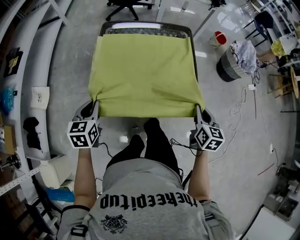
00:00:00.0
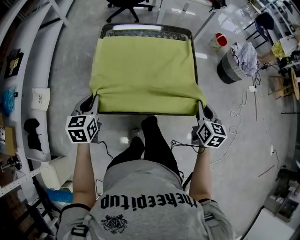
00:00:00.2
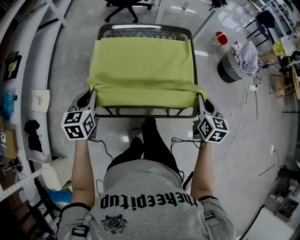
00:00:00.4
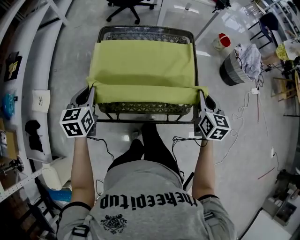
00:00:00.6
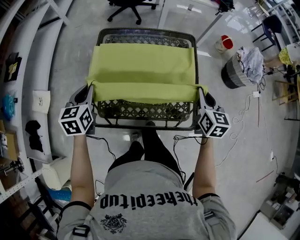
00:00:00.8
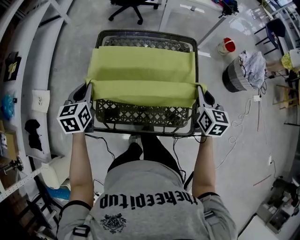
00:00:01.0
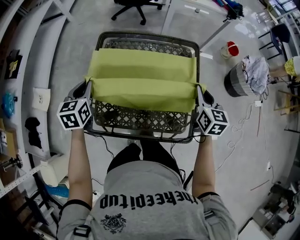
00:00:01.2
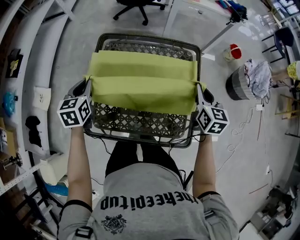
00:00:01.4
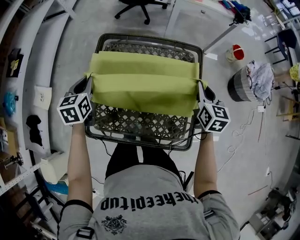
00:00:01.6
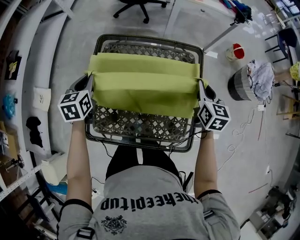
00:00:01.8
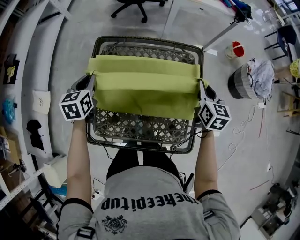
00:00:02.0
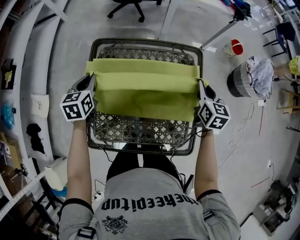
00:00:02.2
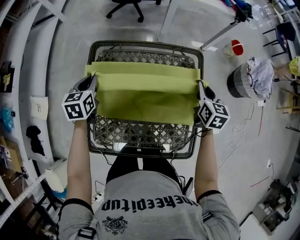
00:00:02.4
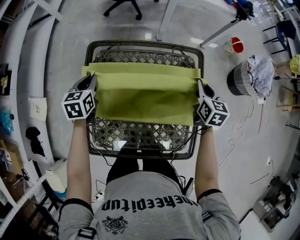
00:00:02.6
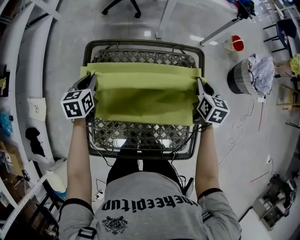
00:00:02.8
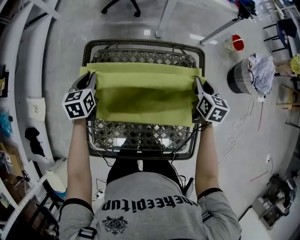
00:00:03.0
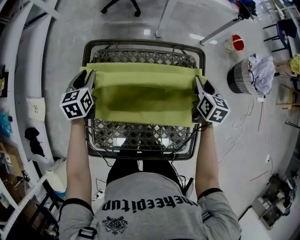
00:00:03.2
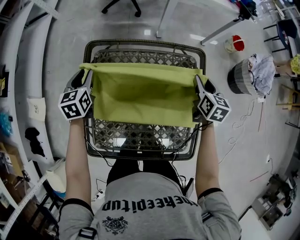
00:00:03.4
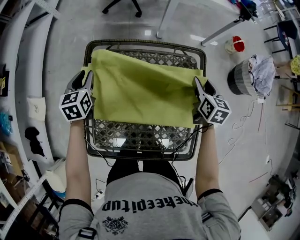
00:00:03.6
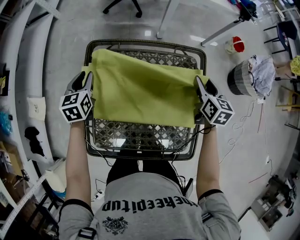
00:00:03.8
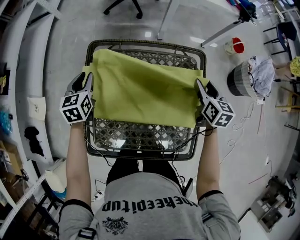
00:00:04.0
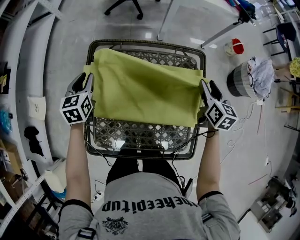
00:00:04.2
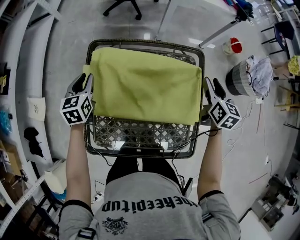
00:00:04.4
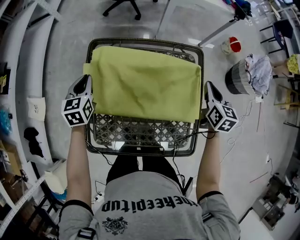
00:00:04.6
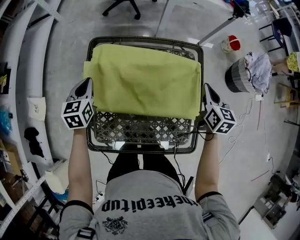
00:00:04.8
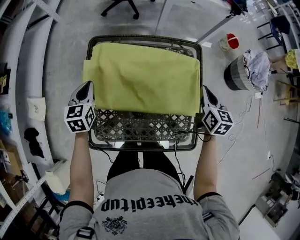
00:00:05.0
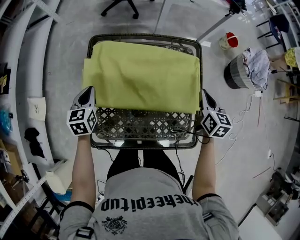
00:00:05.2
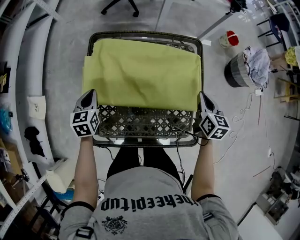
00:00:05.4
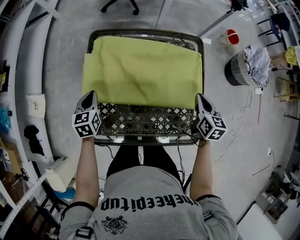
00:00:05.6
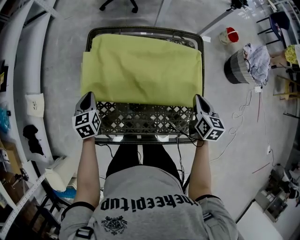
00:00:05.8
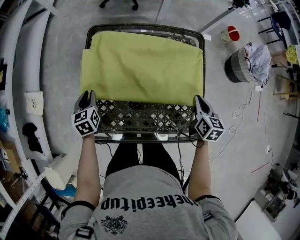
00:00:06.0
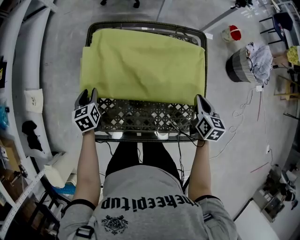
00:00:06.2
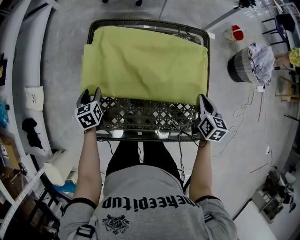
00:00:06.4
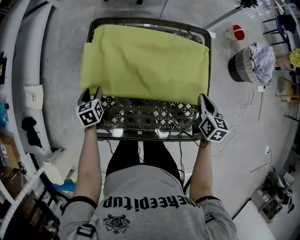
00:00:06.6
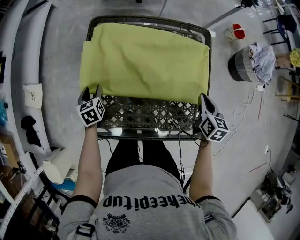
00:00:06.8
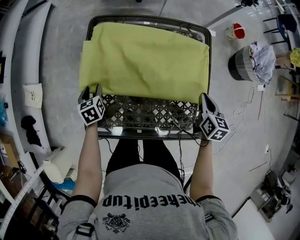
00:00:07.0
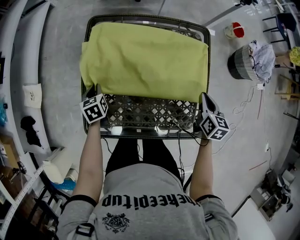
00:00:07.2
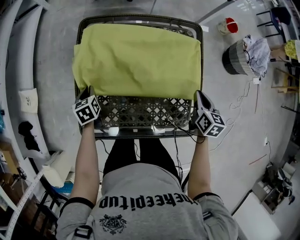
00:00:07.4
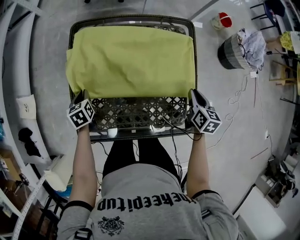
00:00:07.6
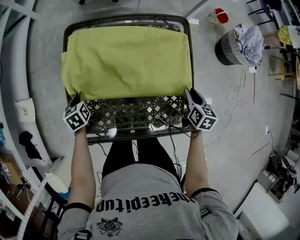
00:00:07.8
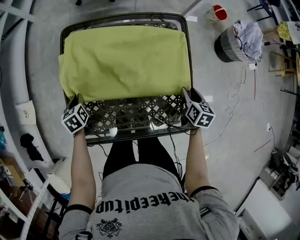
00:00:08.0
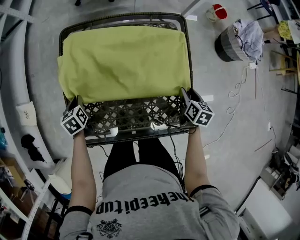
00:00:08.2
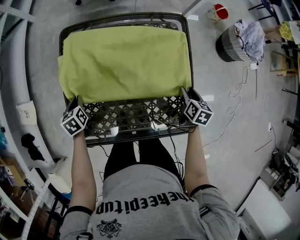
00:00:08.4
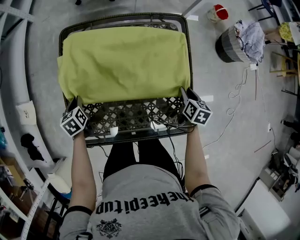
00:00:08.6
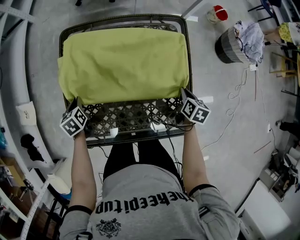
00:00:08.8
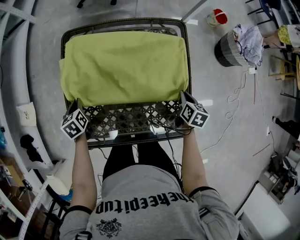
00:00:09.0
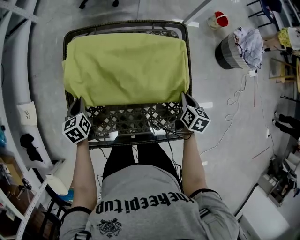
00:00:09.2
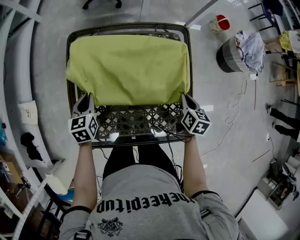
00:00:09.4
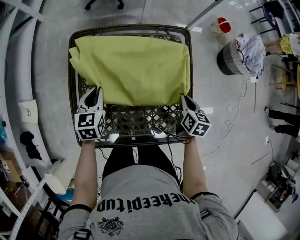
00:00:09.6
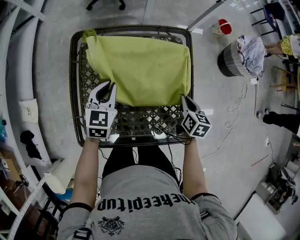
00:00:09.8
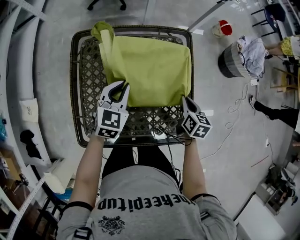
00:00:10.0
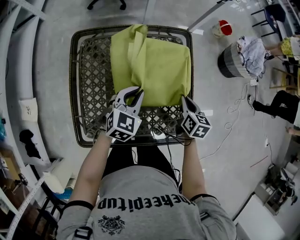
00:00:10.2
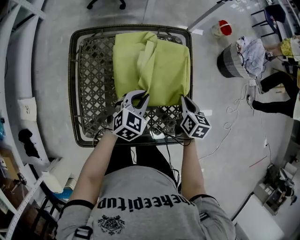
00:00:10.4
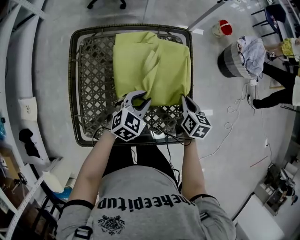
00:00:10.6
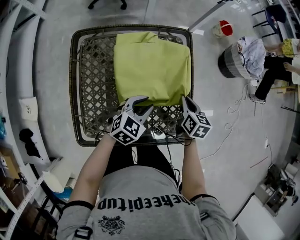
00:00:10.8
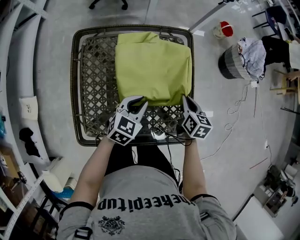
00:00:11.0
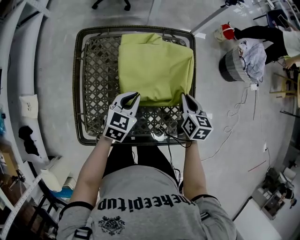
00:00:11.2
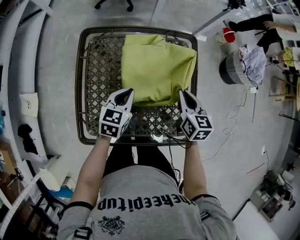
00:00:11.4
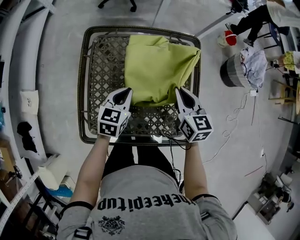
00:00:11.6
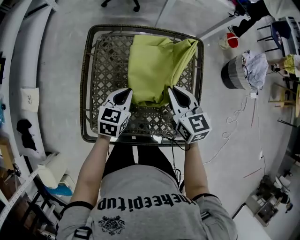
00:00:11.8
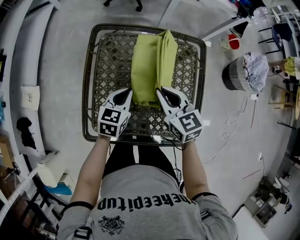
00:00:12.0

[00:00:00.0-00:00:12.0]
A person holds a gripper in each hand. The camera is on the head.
00:00:00.0 to 00:00:01.6: The grippers both shift forward by some 30 cm.
00:00:01.6 to 00:00:03.0: The two grippers go roughly 15 cm forward and downward.
00:00:03.0 to 00:00:04.4: The right gripper shifts about 5 cm upward, and opens.
00:00:04.4 to 00:00:06.0: Both grippers travel together backward and downward, roughly 15 cm. The right gripper closes.
00:00:06.0 to 00:00:07.6: The left gripper goes roughly 5 cm downward, and opens, then closes again.
00:00:07.6 to 00:00:09.0: The right gripper travels downward by roughly 5 cm, and opens, then closes once more.
00:00:09.0 to 00:00:10.4: The right gripper shifts roughly 5 cm upward. The left gripper is displaced to the right by roughly 30 cm, and swivels some 60 degrees.
00:00:10.4 to 00:00:12.0: The right gripper shifts by about 25 cm, and changes its angle by some 40 degrees, while the left gripper shifts by about 15 cm, and swivels about 30 degrees.

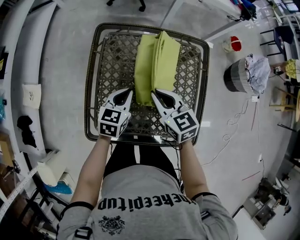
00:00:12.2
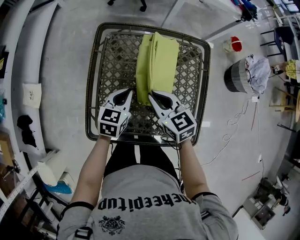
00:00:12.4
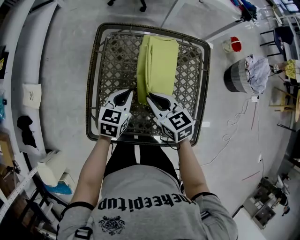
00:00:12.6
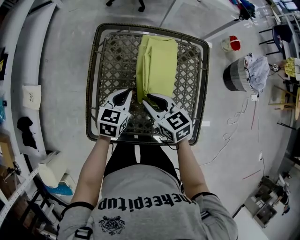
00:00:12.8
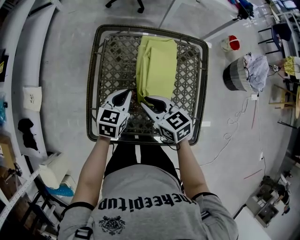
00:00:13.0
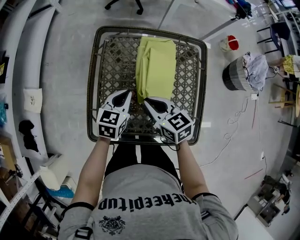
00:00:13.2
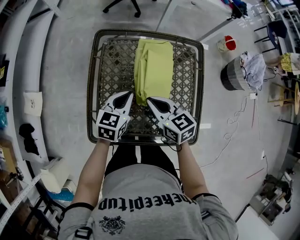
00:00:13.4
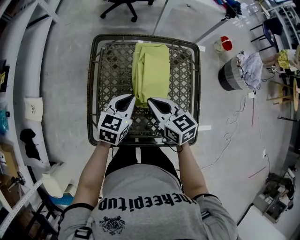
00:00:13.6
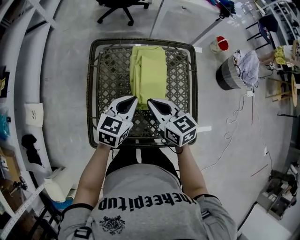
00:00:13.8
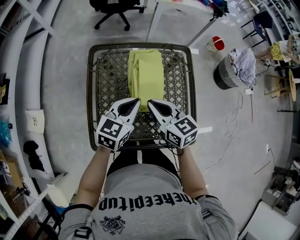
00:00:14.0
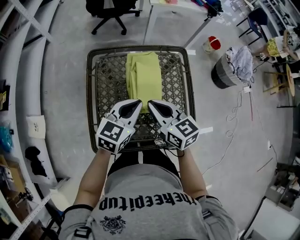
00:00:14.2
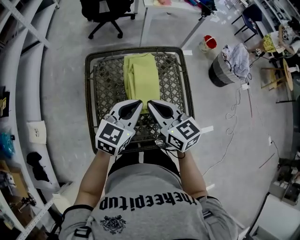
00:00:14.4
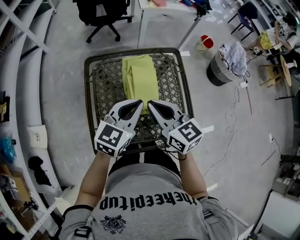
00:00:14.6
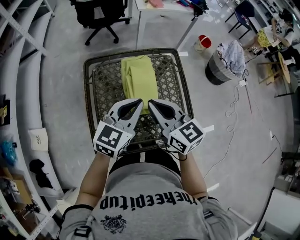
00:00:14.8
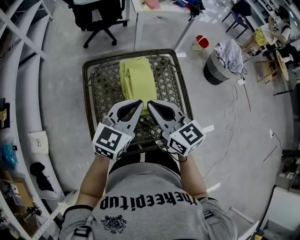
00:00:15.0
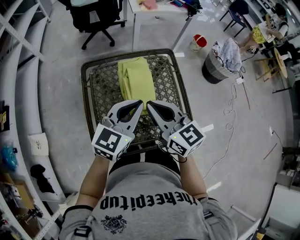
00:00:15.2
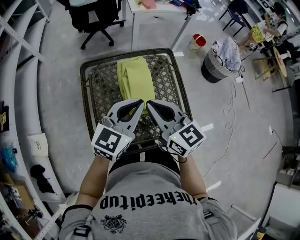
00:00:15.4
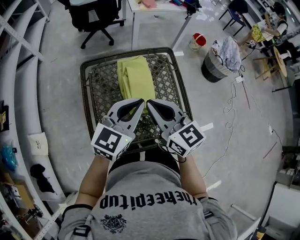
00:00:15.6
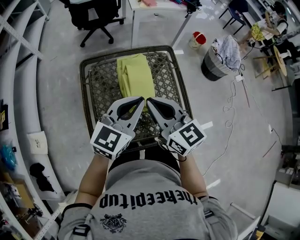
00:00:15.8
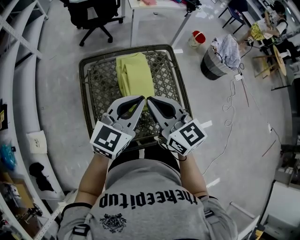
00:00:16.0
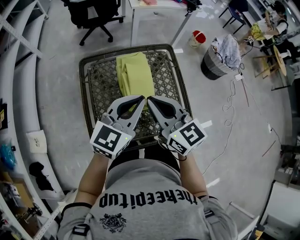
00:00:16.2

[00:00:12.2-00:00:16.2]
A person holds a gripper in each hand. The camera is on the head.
00:00:12.2 to 00:00:13.6: The left gripper goes roughly 5 cm upward.
00:00:13.6 to 00:00:14.8: The grippers both shift upward by about 15 cm. The right gripper swivels roughly 20 degrees; the left gripper rotates about 20 degrees.
00:00:14.8 to 00:00:16.2: The grippers move only a little.

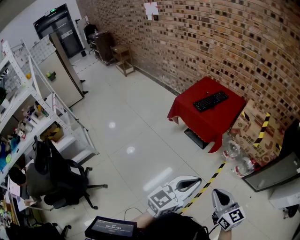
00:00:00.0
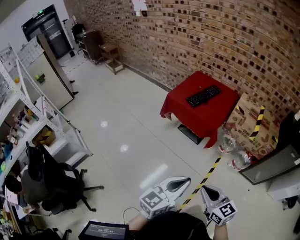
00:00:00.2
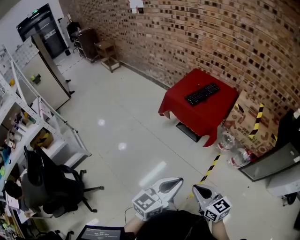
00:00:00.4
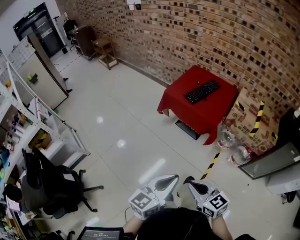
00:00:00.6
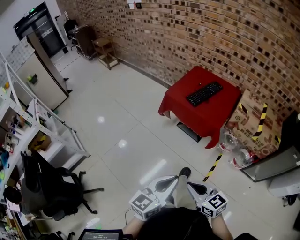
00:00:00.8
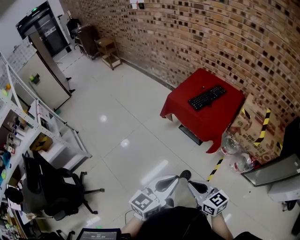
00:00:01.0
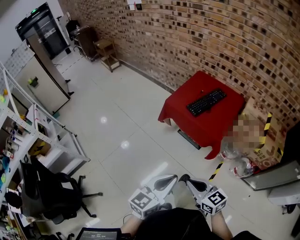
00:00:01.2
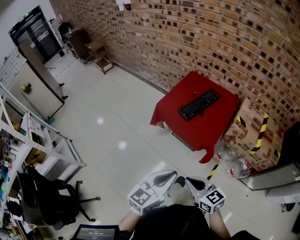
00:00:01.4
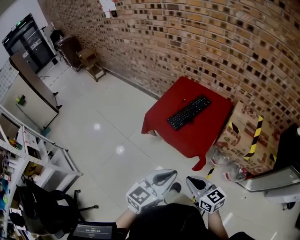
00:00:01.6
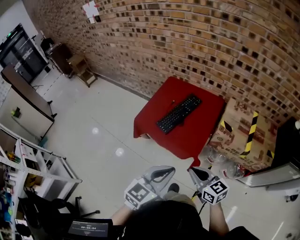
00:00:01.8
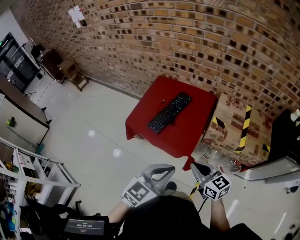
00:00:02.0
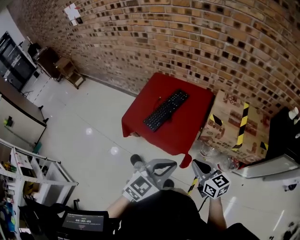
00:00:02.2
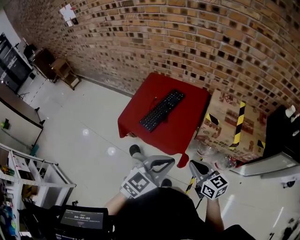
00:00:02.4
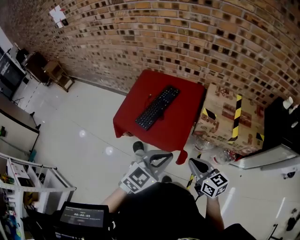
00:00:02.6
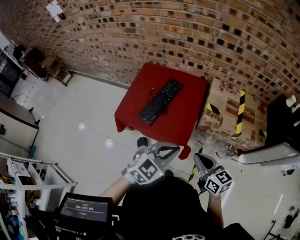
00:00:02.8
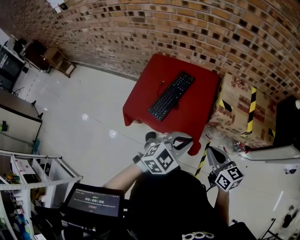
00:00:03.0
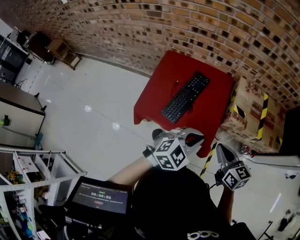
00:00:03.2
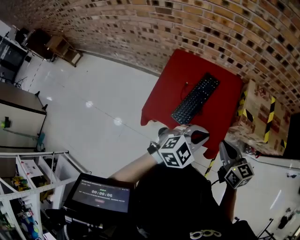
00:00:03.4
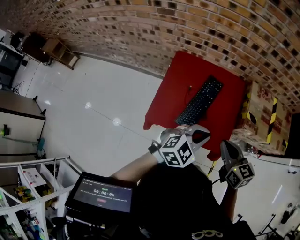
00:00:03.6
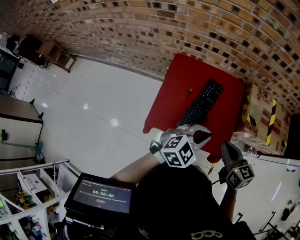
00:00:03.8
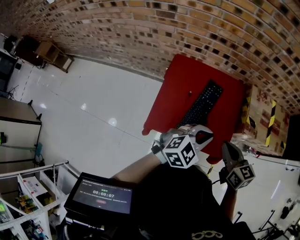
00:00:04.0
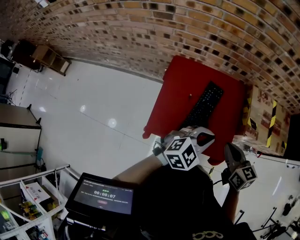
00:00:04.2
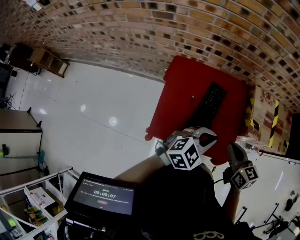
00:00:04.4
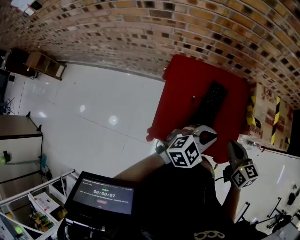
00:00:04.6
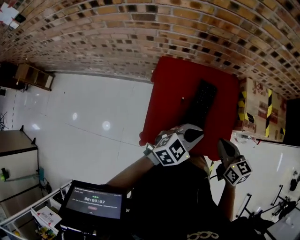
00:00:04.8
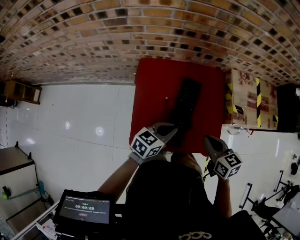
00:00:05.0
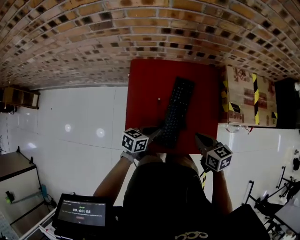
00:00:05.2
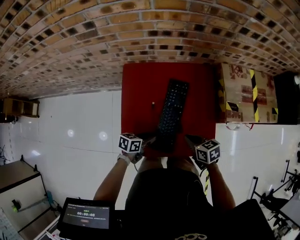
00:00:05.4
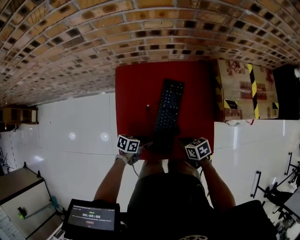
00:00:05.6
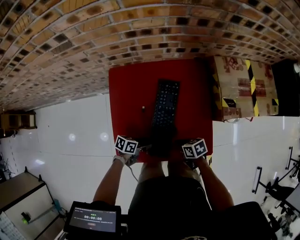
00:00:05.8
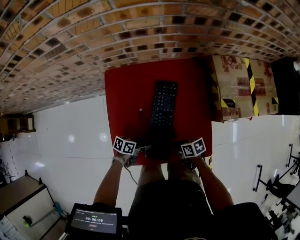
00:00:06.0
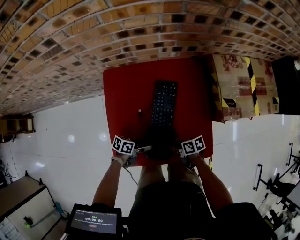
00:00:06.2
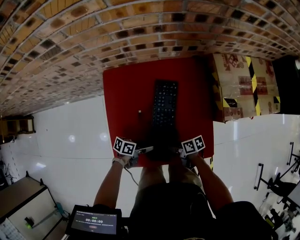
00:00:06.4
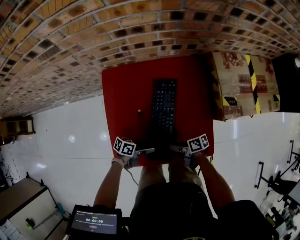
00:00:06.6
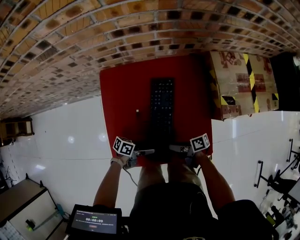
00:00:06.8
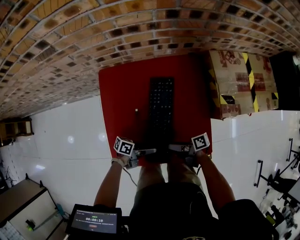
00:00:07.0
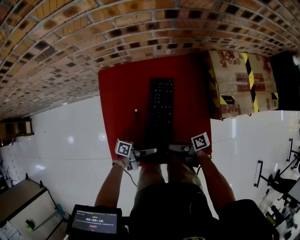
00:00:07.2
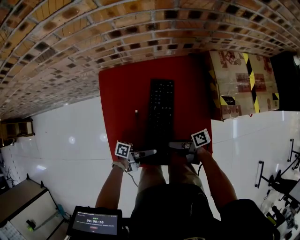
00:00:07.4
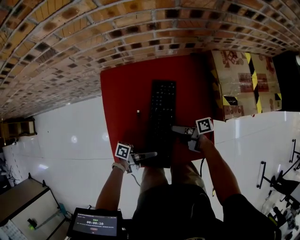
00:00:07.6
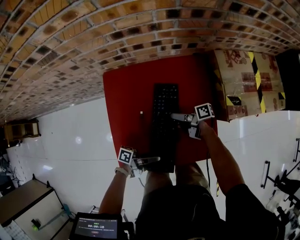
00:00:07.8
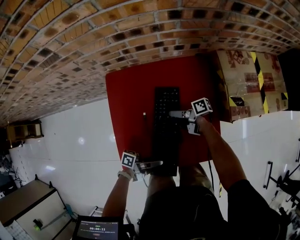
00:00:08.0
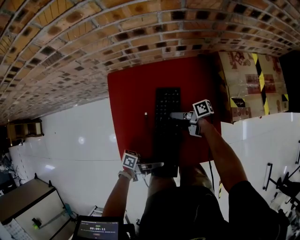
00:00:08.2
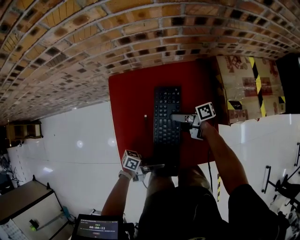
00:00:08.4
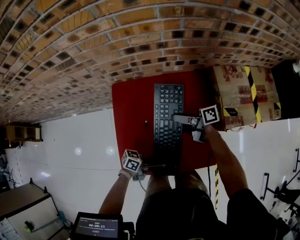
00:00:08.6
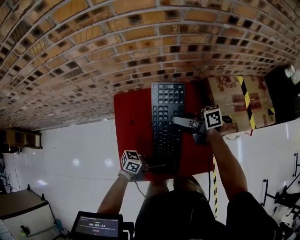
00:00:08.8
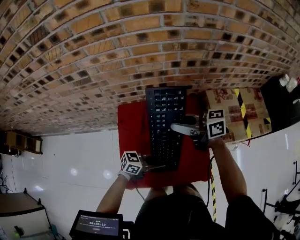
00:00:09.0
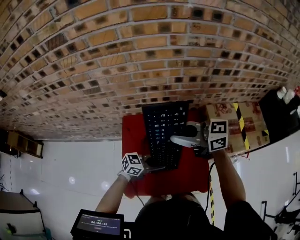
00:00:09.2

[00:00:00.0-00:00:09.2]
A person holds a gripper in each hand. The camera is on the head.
00:00:00.0 to 00:00:01.6: The two grippers go some 35 cm forward.
00:00:01.6 to 00:00:03.0: The left gripper moves some 25 cm, and swivels roughly 50 degrees, while the right gripper ends up roughly 20 cm from where it was, and turns by some 30 degrees.
00:00:03.0 to 00:00:04.6: Both grippers move to the left and forward, some 30 cm.
00:00:04.6 to 00:00:06.2: The two grippers go roughly 30 cm downward. The right gripper swivels about 50 degrees, and opens, while the left gripper rotates around the line of its fingers by some 70 degrees, counterclockwise from behind, and opens.
00:00:06.2 to 00:00:07.6: The right gripper shifts by about 10 cm, and changes its angle by approximately 30 degrees. The left gripper moves upward, some 10 cm, points its fingers some 30 degrees further upward, and closes its fingers.
00:00:07.6 to 00:00:09.2: The left gripper shifts roughly 15 cm upward, and rolls clockwise, seen from behind, by some 60 degrees; the right gripper is displaced upward by some 40 cm, and rolls counterclockwise, seen from behind, by roughly 70 degrees.
